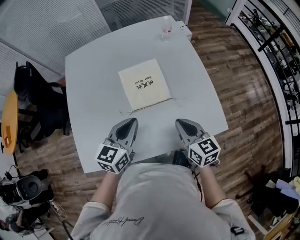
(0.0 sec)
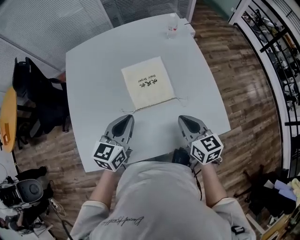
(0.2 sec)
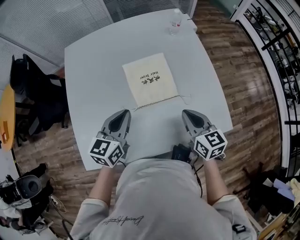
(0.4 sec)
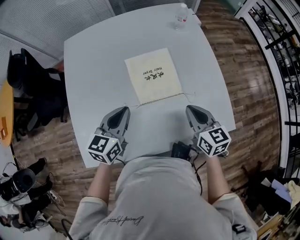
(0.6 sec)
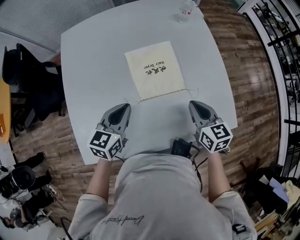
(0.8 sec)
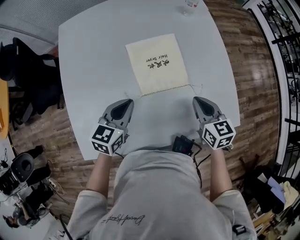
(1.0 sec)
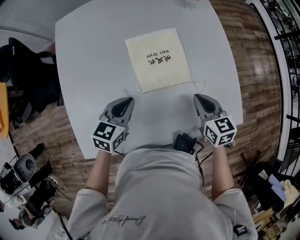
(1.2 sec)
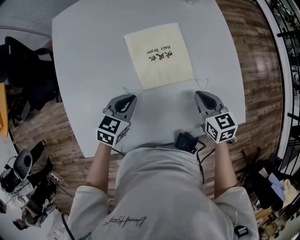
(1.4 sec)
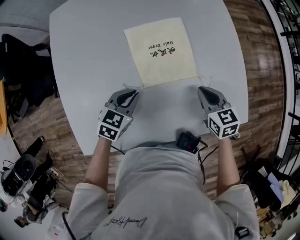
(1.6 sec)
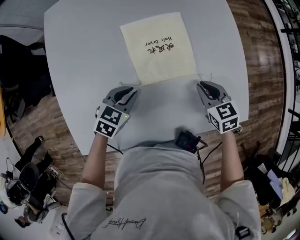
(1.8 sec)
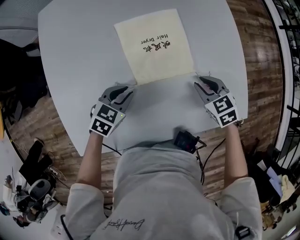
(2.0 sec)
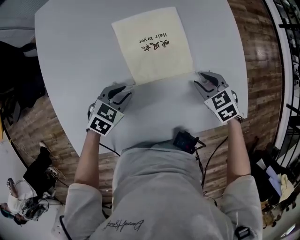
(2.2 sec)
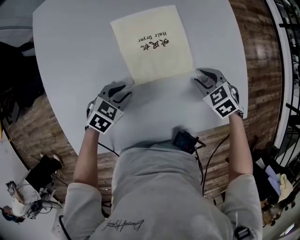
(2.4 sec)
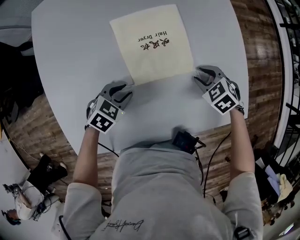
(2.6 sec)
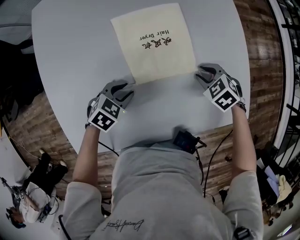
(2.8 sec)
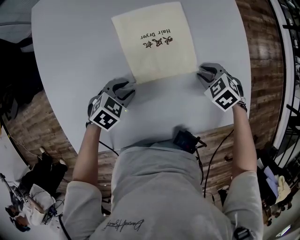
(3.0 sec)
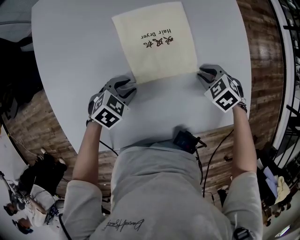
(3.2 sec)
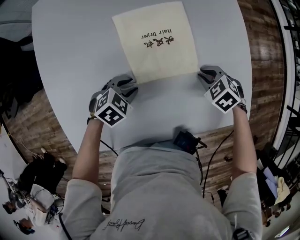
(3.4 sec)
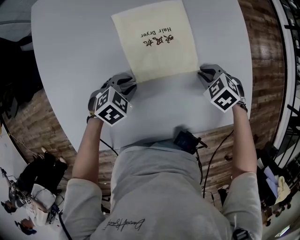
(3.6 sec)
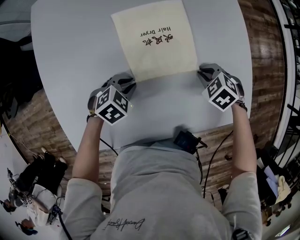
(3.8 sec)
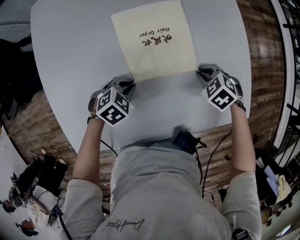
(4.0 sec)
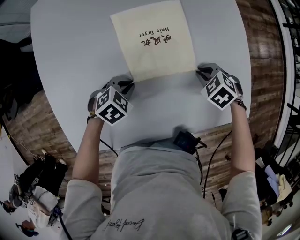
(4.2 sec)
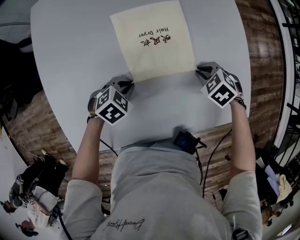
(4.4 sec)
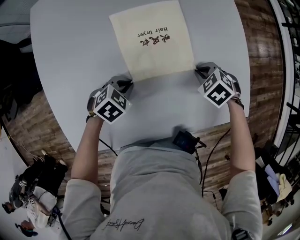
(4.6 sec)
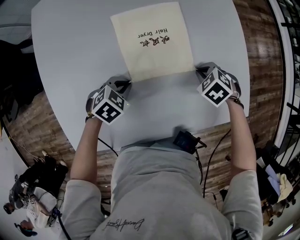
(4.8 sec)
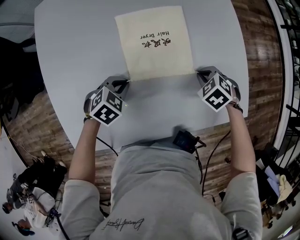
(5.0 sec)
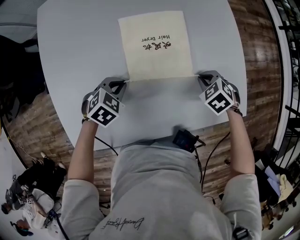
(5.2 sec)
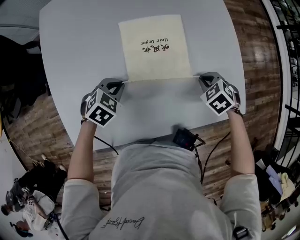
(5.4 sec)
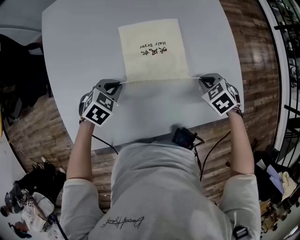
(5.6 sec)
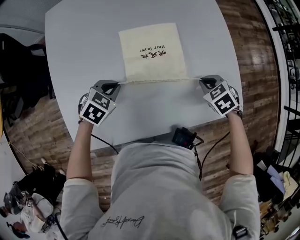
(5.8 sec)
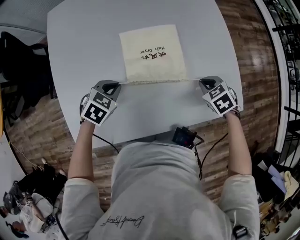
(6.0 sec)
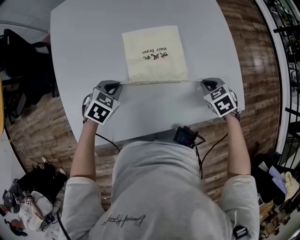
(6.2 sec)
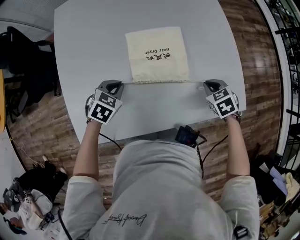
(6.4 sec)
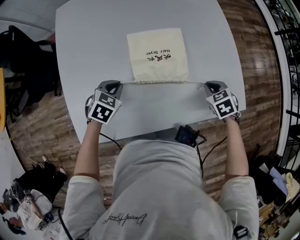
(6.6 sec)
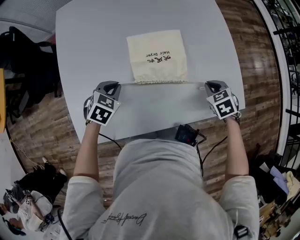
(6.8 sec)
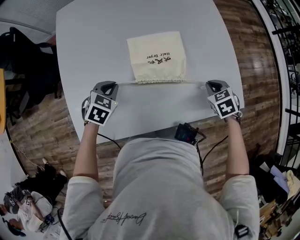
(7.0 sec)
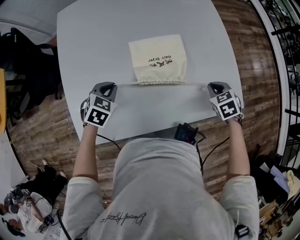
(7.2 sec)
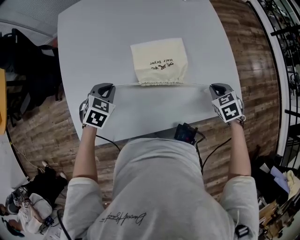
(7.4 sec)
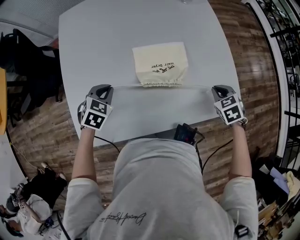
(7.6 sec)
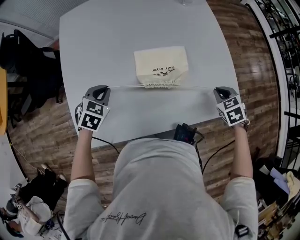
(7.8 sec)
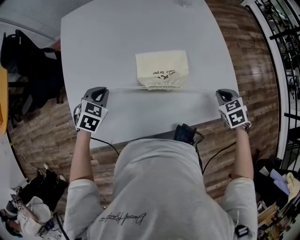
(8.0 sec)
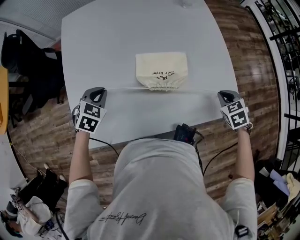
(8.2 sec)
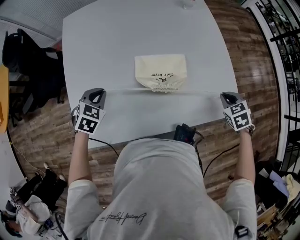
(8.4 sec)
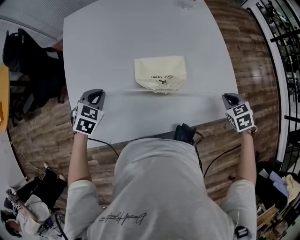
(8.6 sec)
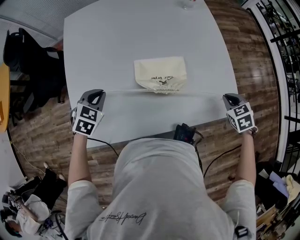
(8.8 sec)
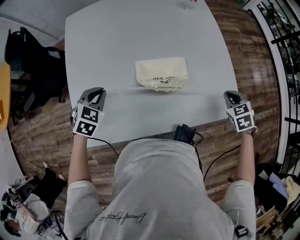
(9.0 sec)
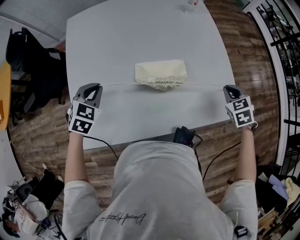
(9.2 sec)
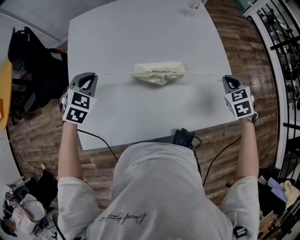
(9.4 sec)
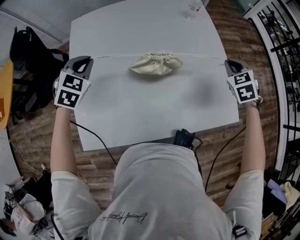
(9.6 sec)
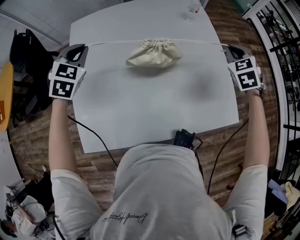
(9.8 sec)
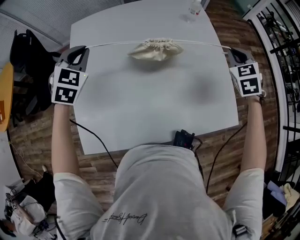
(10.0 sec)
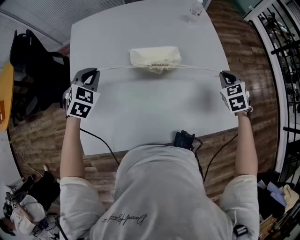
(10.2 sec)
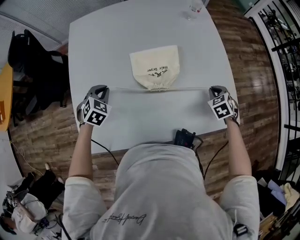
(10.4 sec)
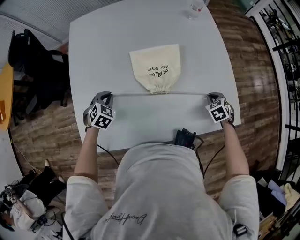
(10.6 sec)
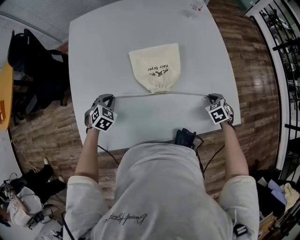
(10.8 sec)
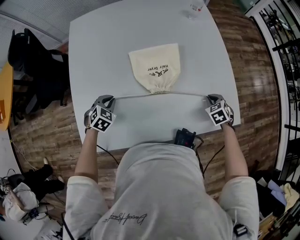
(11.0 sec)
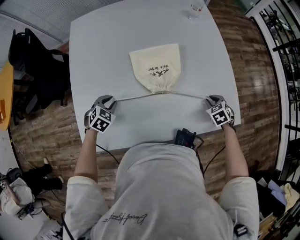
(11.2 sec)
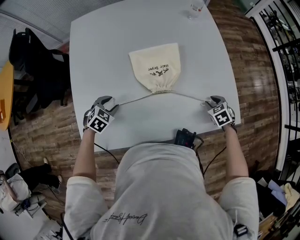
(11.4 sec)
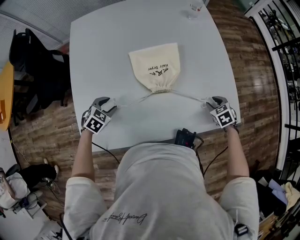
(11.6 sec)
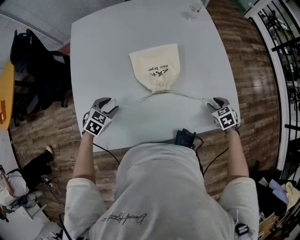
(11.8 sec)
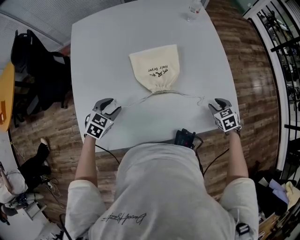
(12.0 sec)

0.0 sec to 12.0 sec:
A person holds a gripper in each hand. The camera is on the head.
0.0 sec to 1.6 sec: The left gripper travels downward and to the left by some 20 cm, and swivels about 30 degrees, while the right gripper is displaced downward and forward by approximately 15 cm, and changes its angle by about 20 degrees.
1.6 sec to 3.0 sec: Both grippers move downward, some 10 cm. The right gripper rotates about 50 degrees, and opens. Meanwhile the left gripper turns by some 20 degrees, and opens up.
3.0 sec to 4.4 sec: The left gripper closes.
4.4 sec to 6.0 sec: The grippers both shift upward by about 5 cm.
6.0 sec to 7.6 sec: The left gripper travels to the left by some 5 cm, while the right gripper goes approximately 5 cm to the right.
7.6 sec to 9.0 sec: The left gripper heads upward, covering about 5 cm. Meanwhile the right gripper moves to the right, roughly 5 cm.
9.0 sec to 10.4 sec: The left gripper moves about 15 cm upward and comes back; the right gripper is displaced forward by some 5 cm, and moves about 15 cm upward and comes back.
10.4 sec to 12.0 sec: The grippers both shift backward by approximately 10 cm. The right gripper opens its fingers. The left gripper opens its fingers.

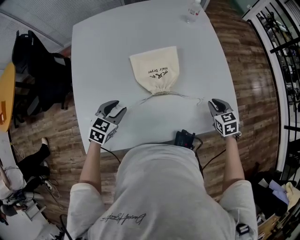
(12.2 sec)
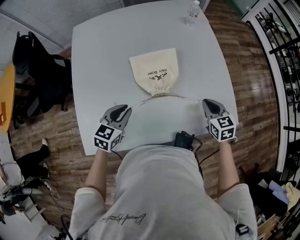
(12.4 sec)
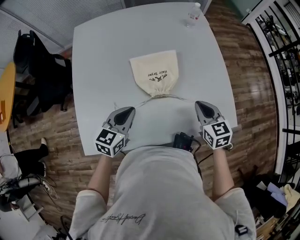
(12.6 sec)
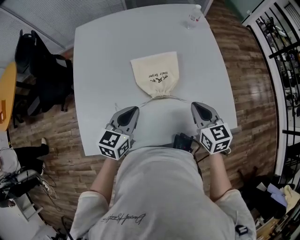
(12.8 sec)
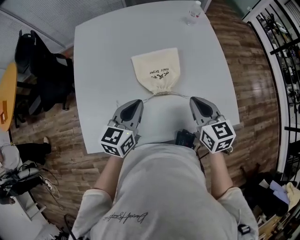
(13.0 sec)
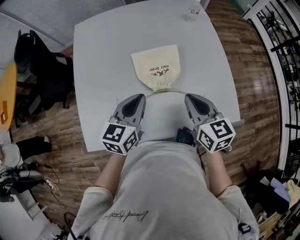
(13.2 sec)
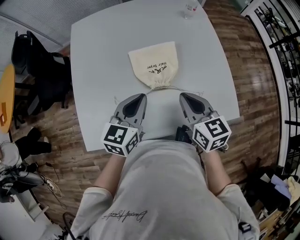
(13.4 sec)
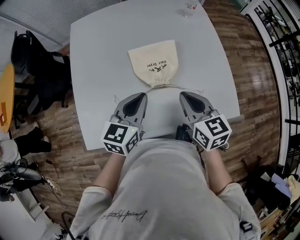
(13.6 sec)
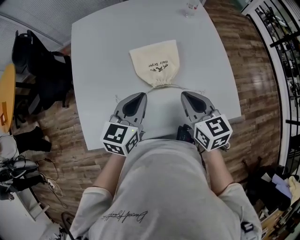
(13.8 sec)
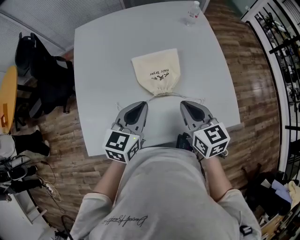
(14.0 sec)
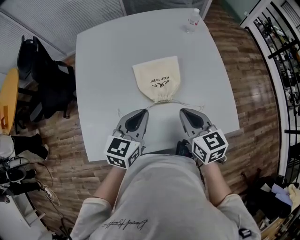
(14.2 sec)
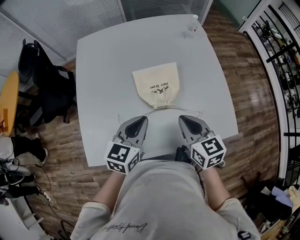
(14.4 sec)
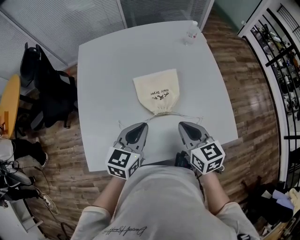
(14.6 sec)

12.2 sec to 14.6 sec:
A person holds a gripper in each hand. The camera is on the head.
12.2 sec to 13.4 sec: The left gripper moves upward and to the right, approximately 15 cm, changes its angle by approximately 30 degrees, and closes. The right gripper heads to the left and upward, covering roughly 25 cm, and rotates roughly 30 degrees.
13.4 sec to 14.6 sec: The grippers make only small movements.

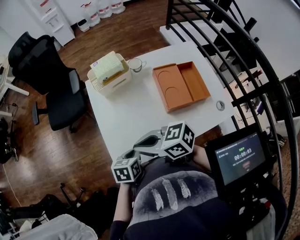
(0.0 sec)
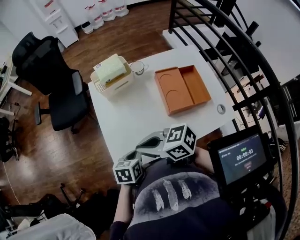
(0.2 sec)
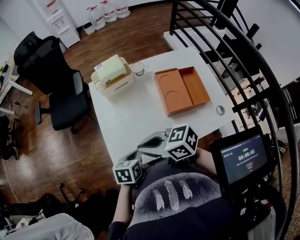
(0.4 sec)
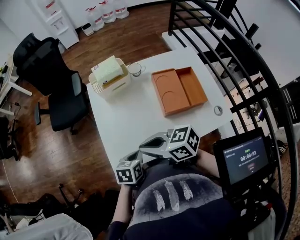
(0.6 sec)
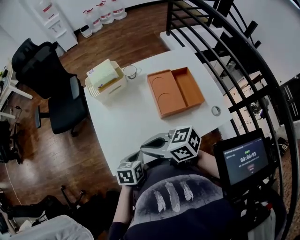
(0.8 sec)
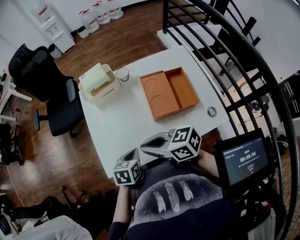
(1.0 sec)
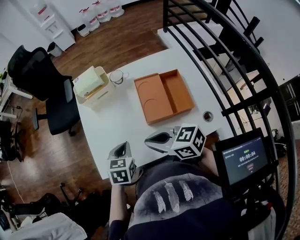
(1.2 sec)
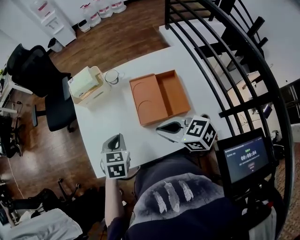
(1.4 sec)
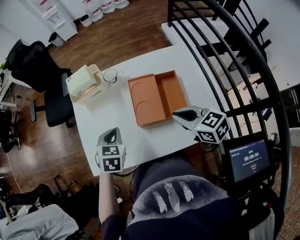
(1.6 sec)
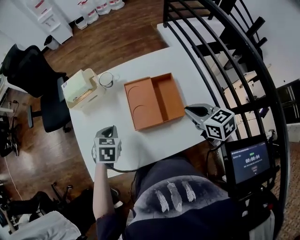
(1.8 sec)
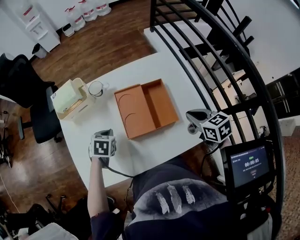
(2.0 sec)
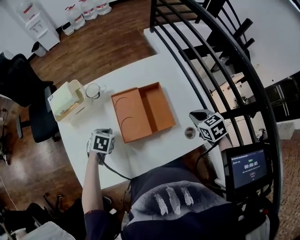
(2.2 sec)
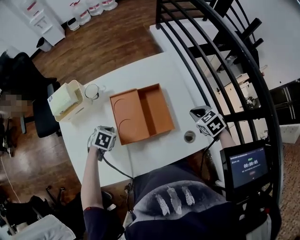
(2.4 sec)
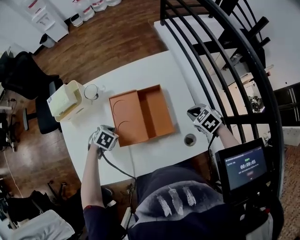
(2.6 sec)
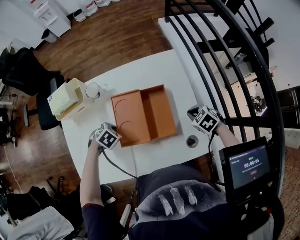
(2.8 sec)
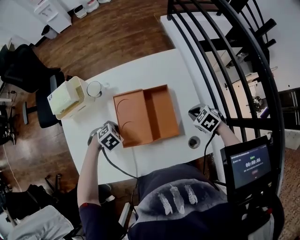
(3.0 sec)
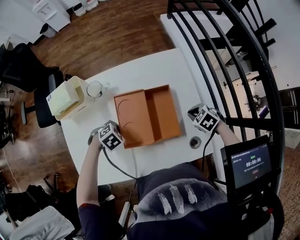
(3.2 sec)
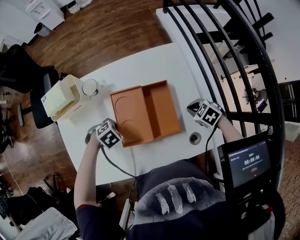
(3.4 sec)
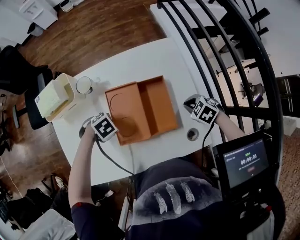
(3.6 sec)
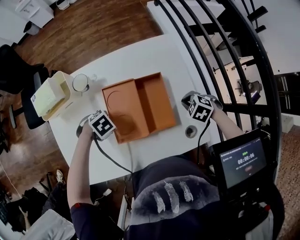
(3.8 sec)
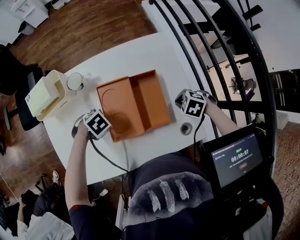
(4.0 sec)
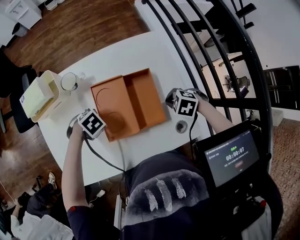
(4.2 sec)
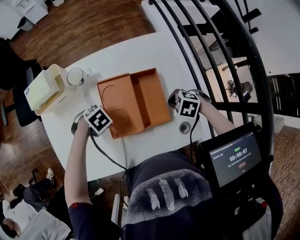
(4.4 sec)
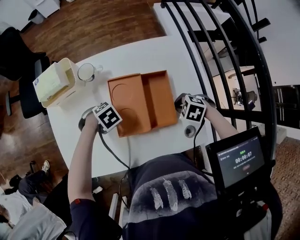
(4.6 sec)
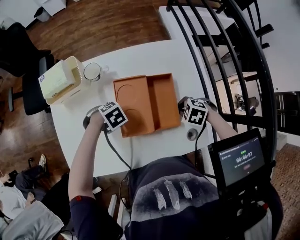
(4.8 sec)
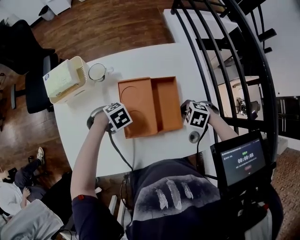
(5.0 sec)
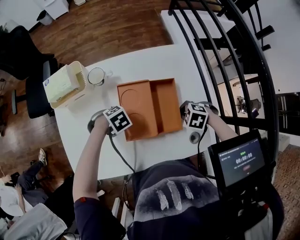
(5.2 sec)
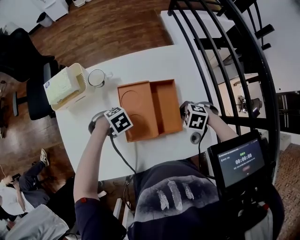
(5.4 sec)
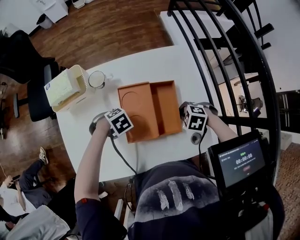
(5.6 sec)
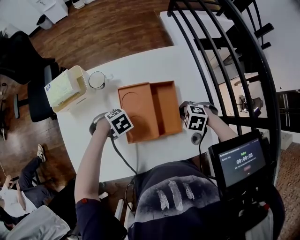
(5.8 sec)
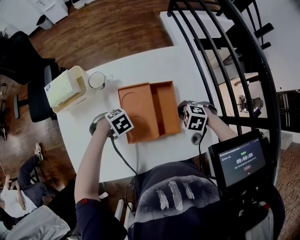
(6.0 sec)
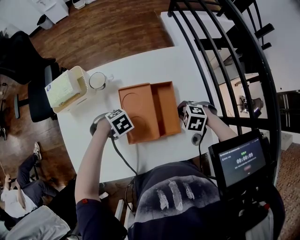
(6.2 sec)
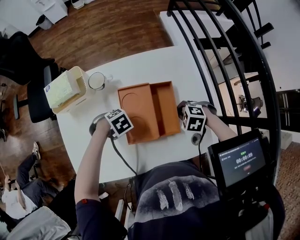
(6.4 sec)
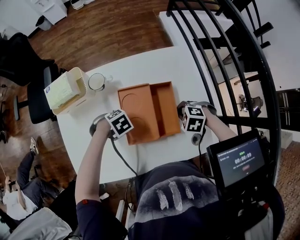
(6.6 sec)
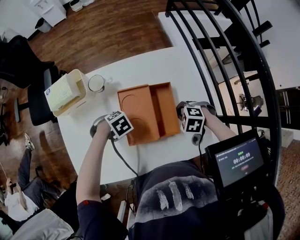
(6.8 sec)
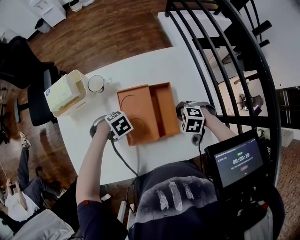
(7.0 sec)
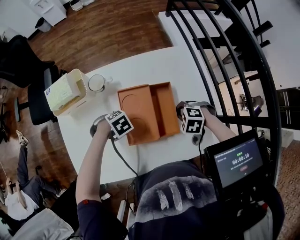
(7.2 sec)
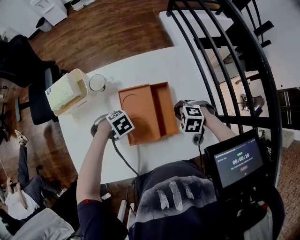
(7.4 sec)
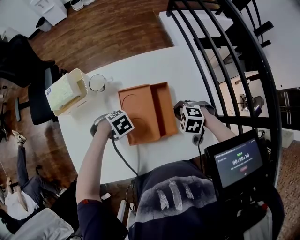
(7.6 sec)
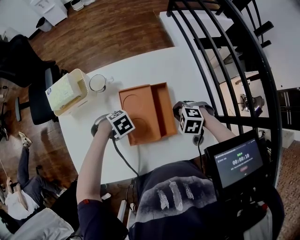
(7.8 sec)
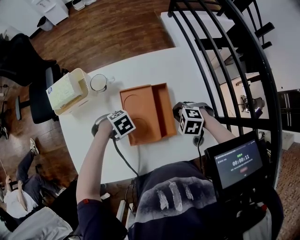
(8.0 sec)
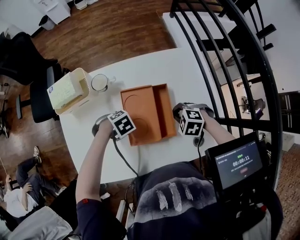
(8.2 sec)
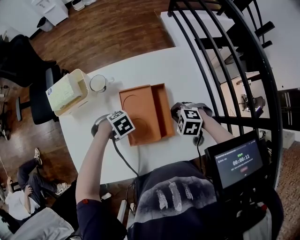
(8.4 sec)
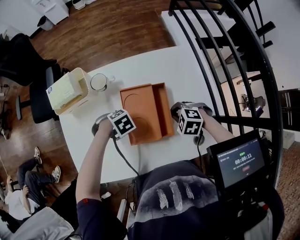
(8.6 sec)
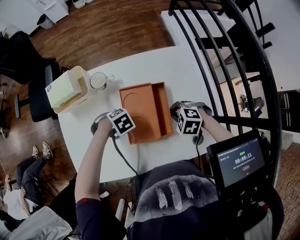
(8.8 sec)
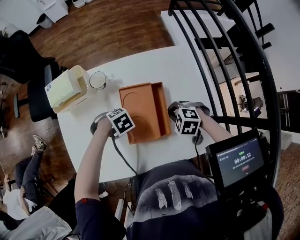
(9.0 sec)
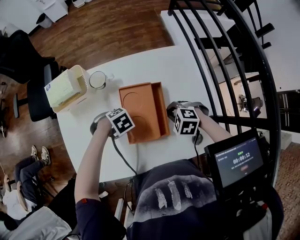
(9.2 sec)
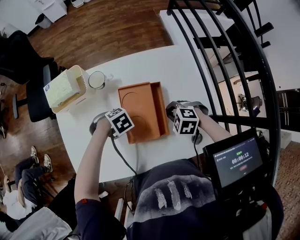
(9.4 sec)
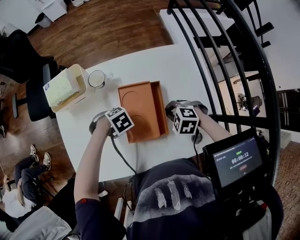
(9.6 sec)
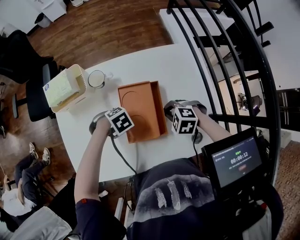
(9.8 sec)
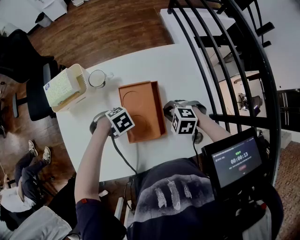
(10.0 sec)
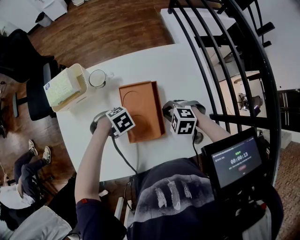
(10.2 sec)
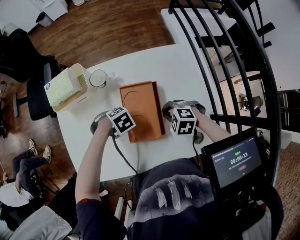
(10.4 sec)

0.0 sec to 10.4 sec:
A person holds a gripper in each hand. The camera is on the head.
0.0 sec to 1.4 sec: The right gripper moves roughly 30 cm.
1.4 sec to 3.0 sec: The right gripper moves about 35 cm, and points its fingers some 40 degrees further downward.
3.0 sec to 4.4 sec: The right gripper moves approximately 5 cm, and rotates approximately 20 degrees.
